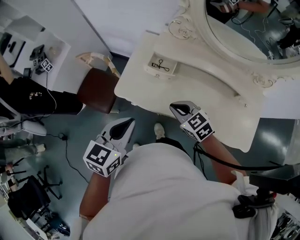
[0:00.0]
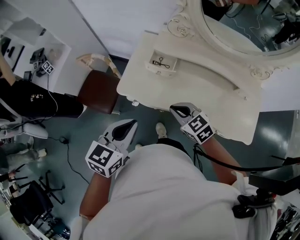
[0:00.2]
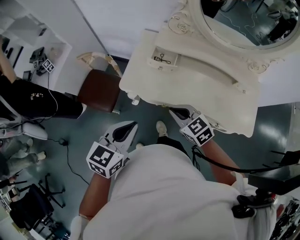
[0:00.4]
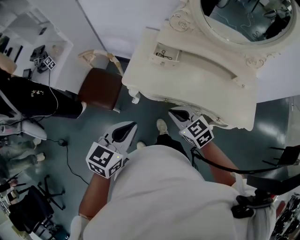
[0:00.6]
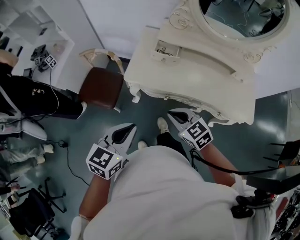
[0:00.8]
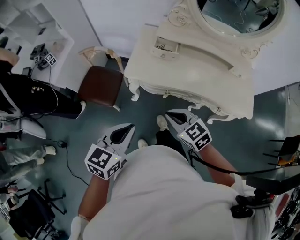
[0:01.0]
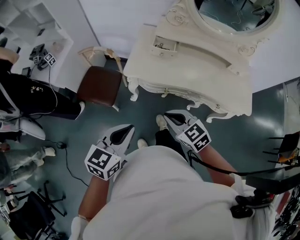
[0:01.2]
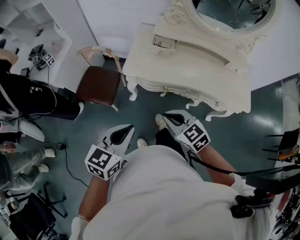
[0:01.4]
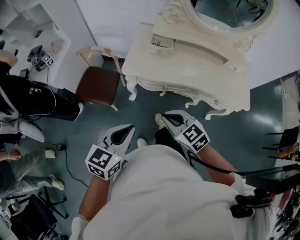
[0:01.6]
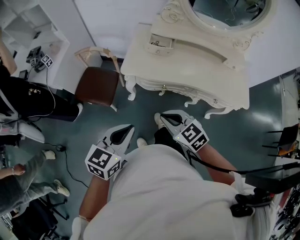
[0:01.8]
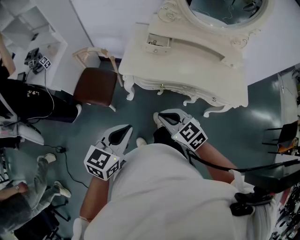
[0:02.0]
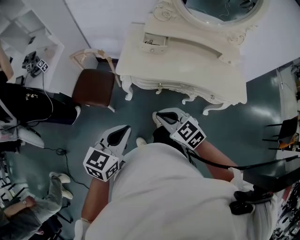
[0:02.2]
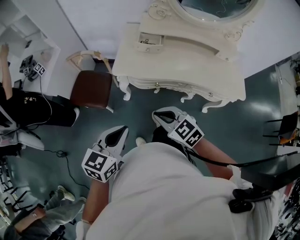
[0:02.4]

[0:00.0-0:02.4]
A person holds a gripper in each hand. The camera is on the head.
0:00.0 to 0:01.2: Both grippers travel together backward and to the left, about 25 cm.
0:01.2 to 0:02.4: There are only small adjustments of the grippers.

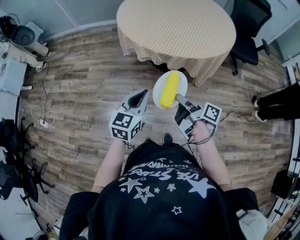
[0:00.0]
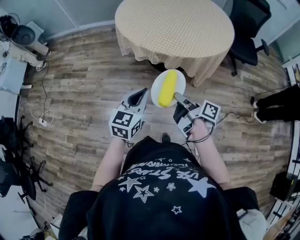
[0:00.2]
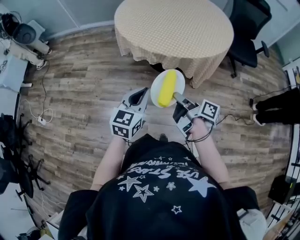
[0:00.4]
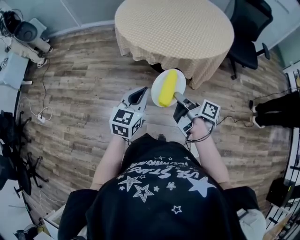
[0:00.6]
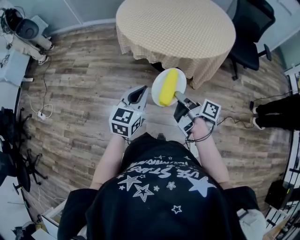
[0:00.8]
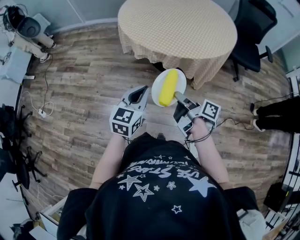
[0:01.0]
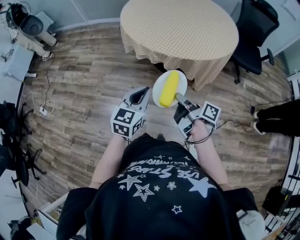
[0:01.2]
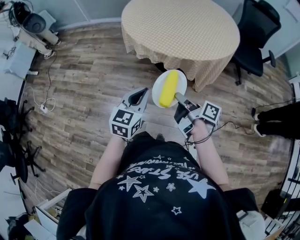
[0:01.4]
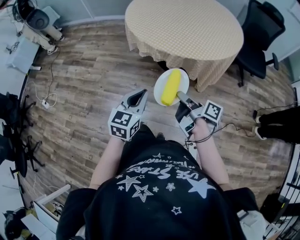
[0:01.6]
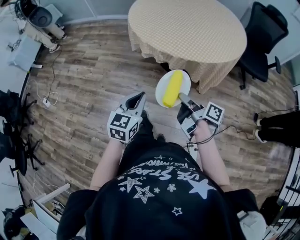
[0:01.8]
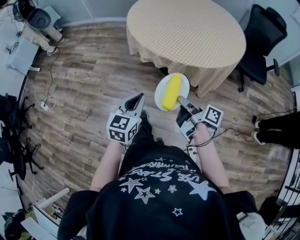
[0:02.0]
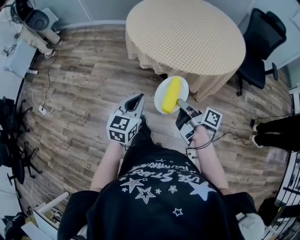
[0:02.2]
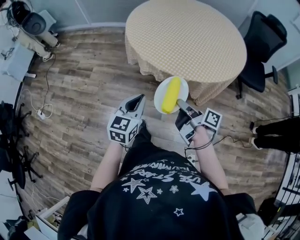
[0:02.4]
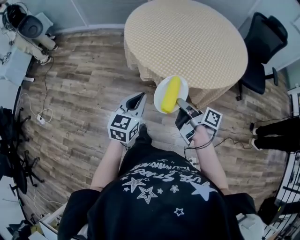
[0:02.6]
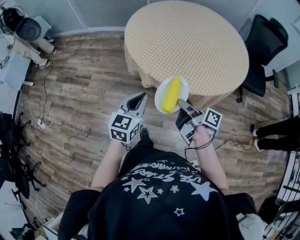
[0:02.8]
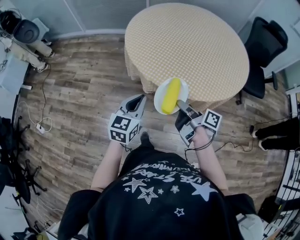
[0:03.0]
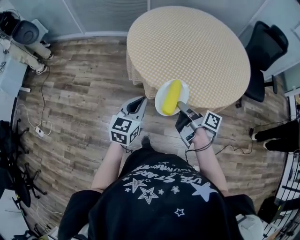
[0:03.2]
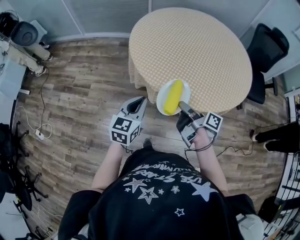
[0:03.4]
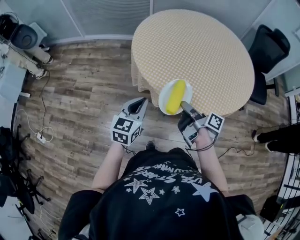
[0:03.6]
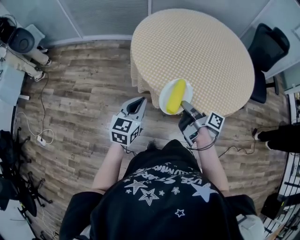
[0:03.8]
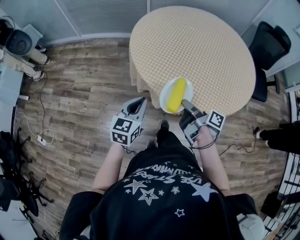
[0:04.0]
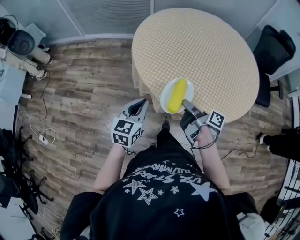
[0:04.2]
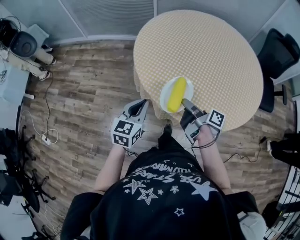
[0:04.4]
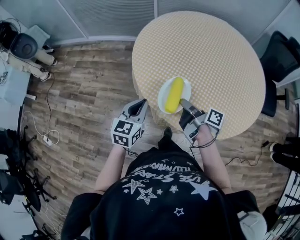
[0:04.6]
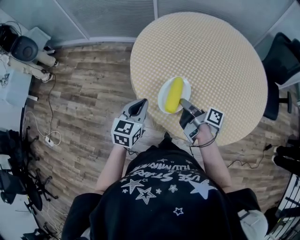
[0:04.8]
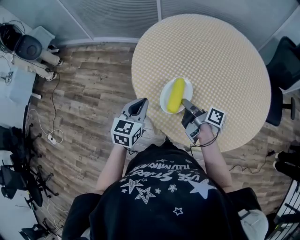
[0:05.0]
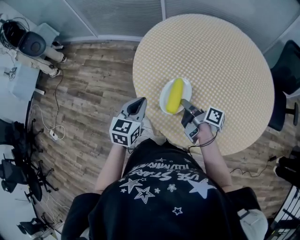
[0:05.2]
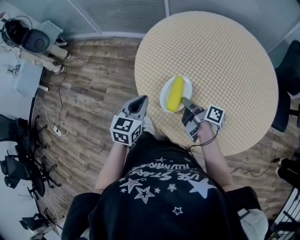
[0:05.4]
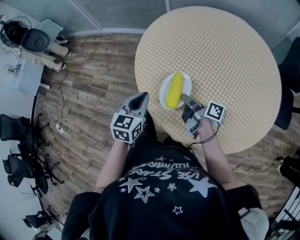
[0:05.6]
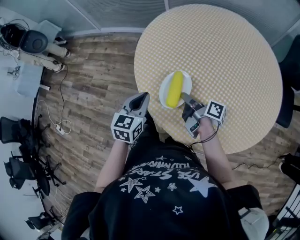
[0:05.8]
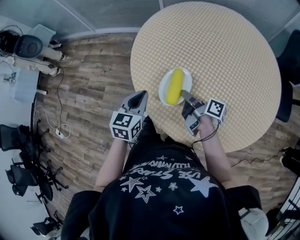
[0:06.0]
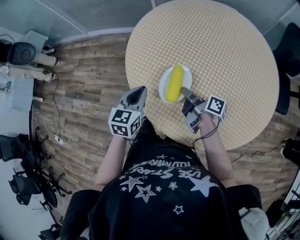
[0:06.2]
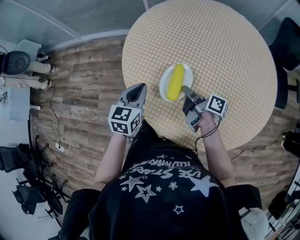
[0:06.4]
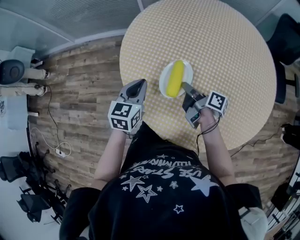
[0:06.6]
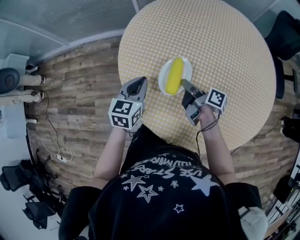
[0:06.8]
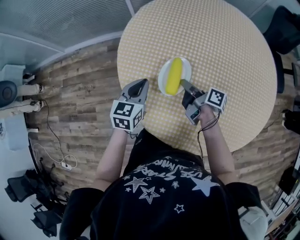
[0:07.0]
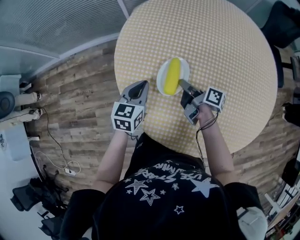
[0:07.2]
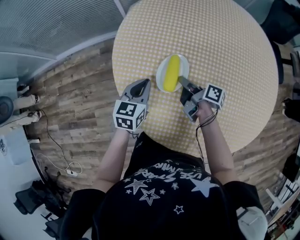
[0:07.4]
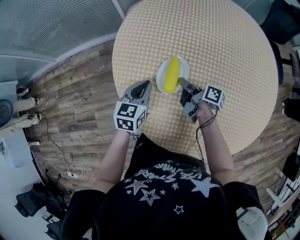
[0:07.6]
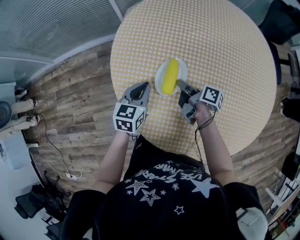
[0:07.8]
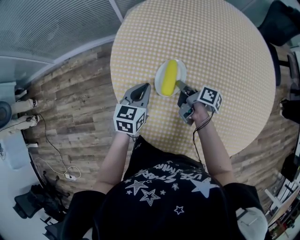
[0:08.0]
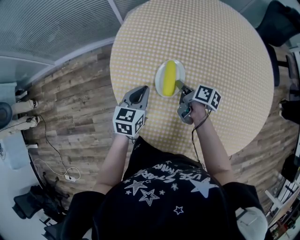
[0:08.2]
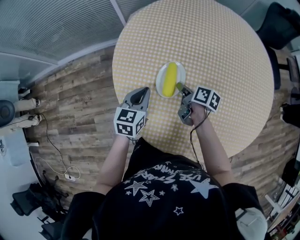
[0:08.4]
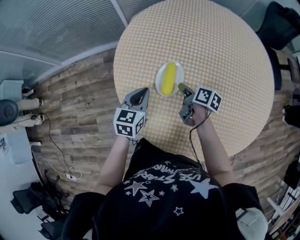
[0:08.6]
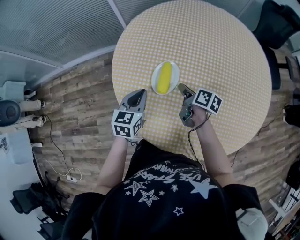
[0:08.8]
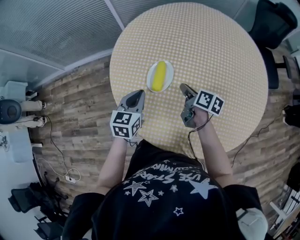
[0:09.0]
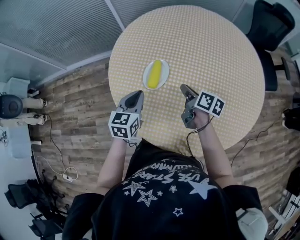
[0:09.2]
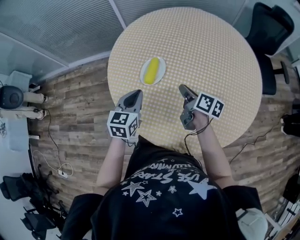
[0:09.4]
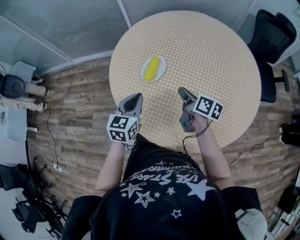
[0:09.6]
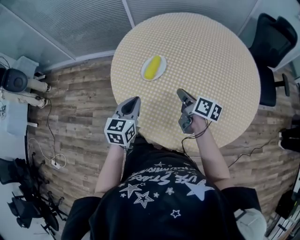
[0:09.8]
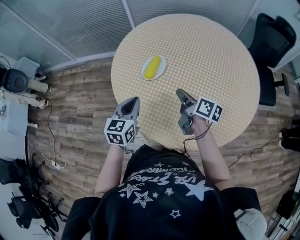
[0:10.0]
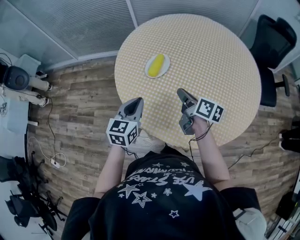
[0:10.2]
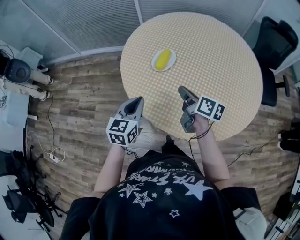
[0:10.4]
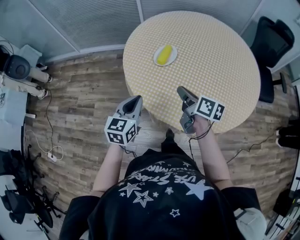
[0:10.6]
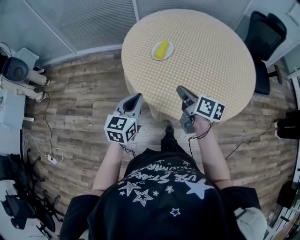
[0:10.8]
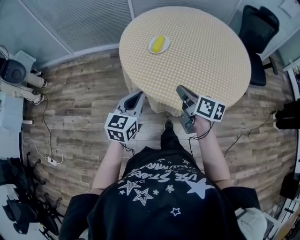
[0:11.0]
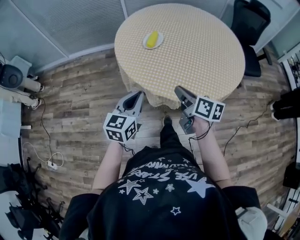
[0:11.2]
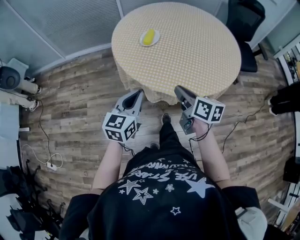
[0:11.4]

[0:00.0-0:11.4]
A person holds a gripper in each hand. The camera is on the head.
0:00.0 to 0:01.4: The left gripper ends up approximately 5 cm from where it was.
0:01.4 to 0:02.8: The left gripper changes place by some 20 cm.
0:02.8 to 0:04.2: The left gripper changes place by approximately 15 cm.
0:04.2 to 0:05.6: The left gripper ends up some 20 cm from where it was.
0:05.6 to 0:07.2: The left gripper moves some 25 cm, and rotates roughly 20 degrees.
0:08.6 to 0:10.0: The left gripper shifts by about 20 cm.
0:10.0 to 0:11.4: The left gripper shifts by about 25 cm.

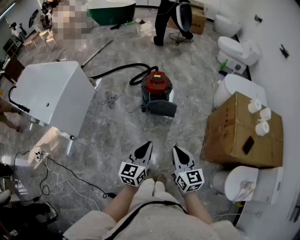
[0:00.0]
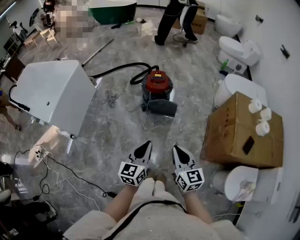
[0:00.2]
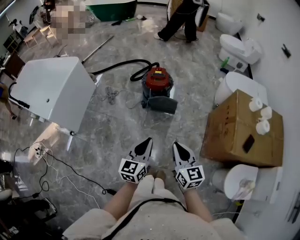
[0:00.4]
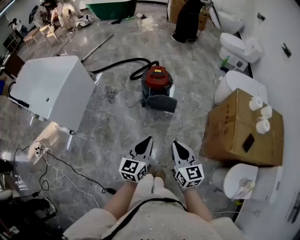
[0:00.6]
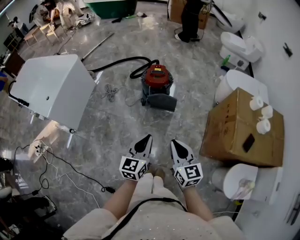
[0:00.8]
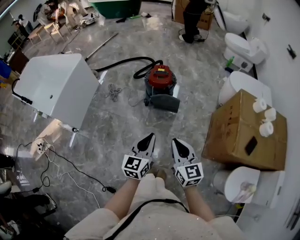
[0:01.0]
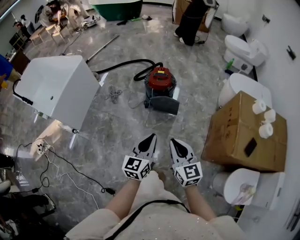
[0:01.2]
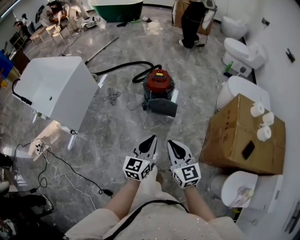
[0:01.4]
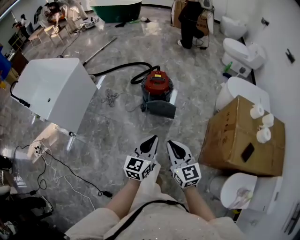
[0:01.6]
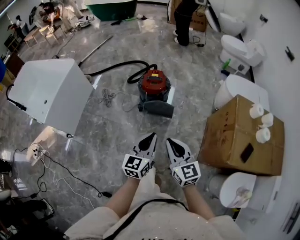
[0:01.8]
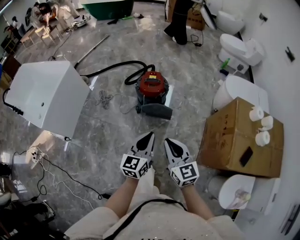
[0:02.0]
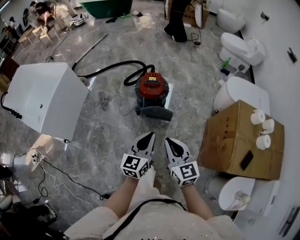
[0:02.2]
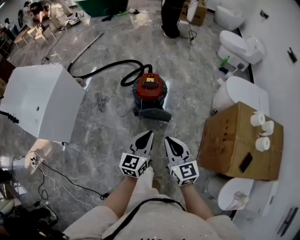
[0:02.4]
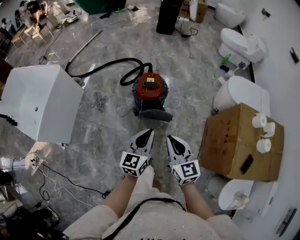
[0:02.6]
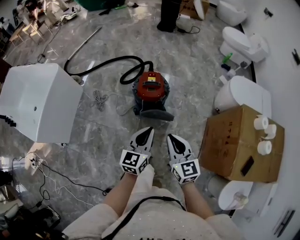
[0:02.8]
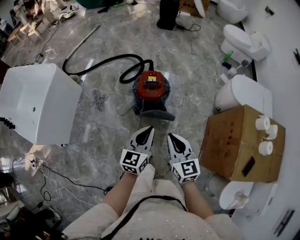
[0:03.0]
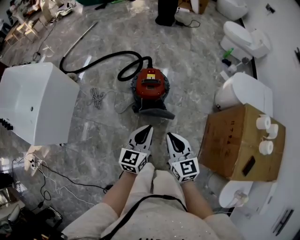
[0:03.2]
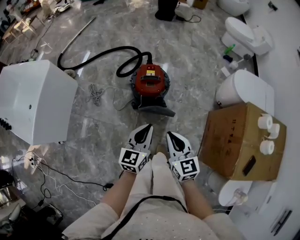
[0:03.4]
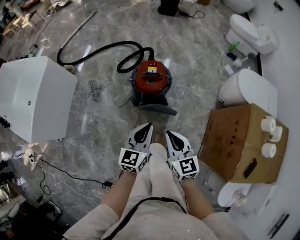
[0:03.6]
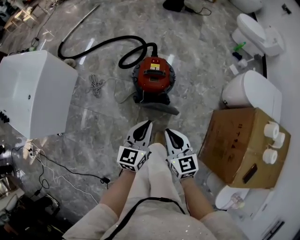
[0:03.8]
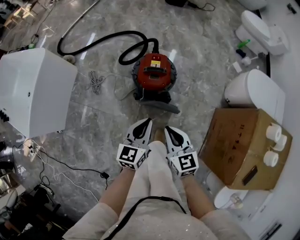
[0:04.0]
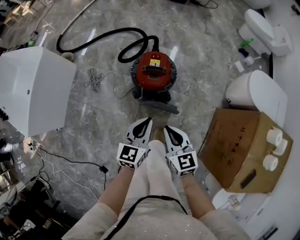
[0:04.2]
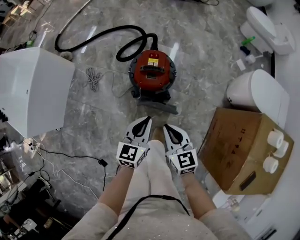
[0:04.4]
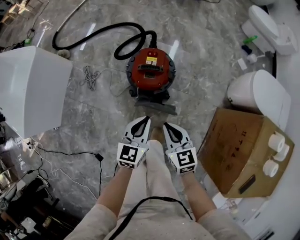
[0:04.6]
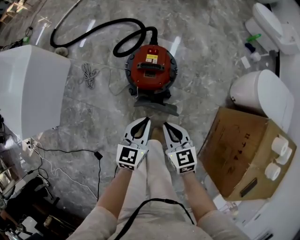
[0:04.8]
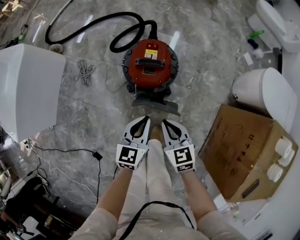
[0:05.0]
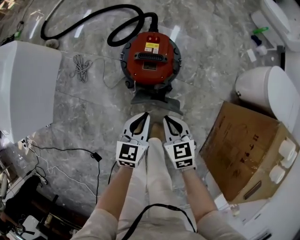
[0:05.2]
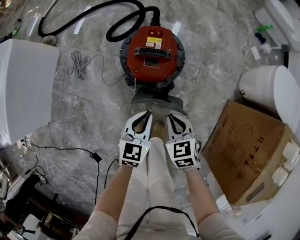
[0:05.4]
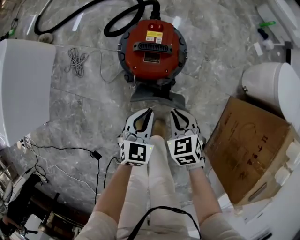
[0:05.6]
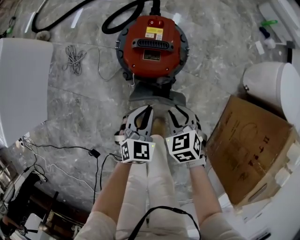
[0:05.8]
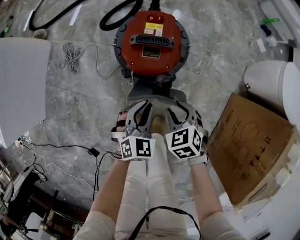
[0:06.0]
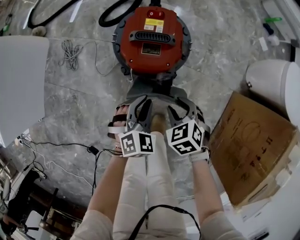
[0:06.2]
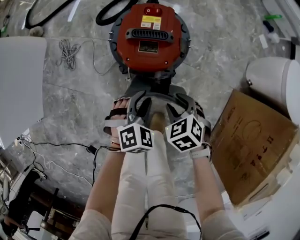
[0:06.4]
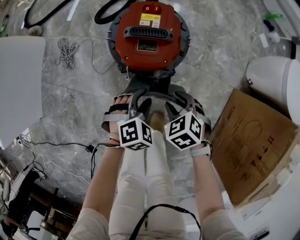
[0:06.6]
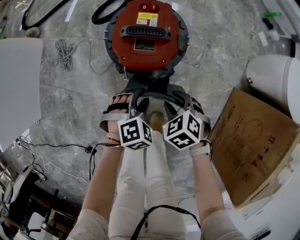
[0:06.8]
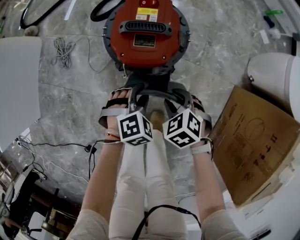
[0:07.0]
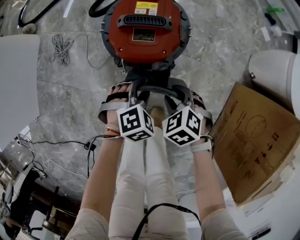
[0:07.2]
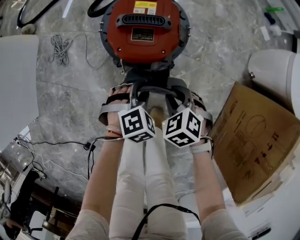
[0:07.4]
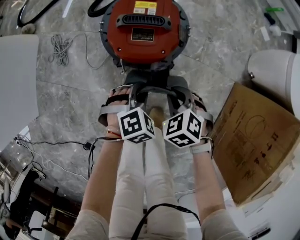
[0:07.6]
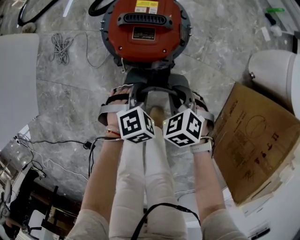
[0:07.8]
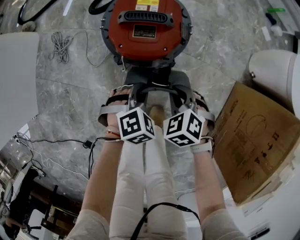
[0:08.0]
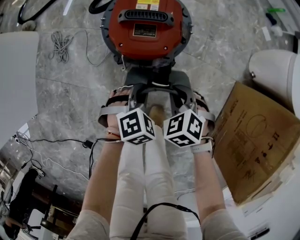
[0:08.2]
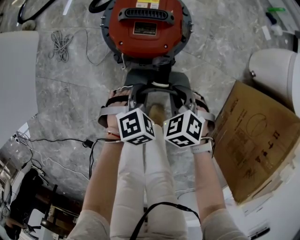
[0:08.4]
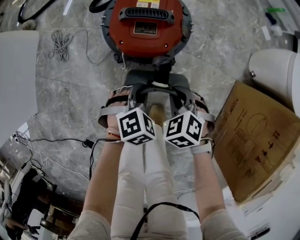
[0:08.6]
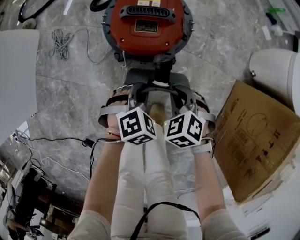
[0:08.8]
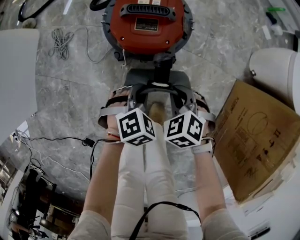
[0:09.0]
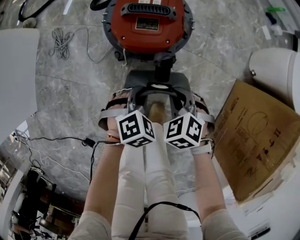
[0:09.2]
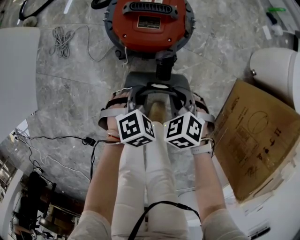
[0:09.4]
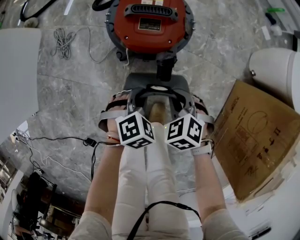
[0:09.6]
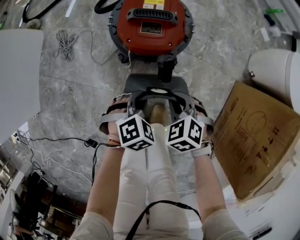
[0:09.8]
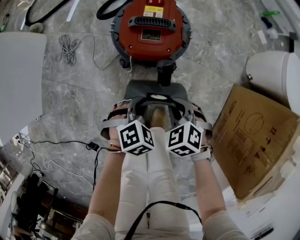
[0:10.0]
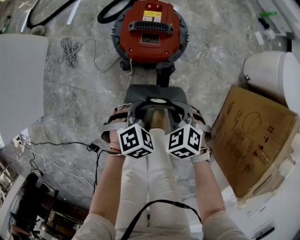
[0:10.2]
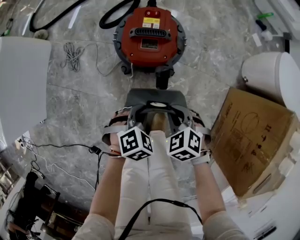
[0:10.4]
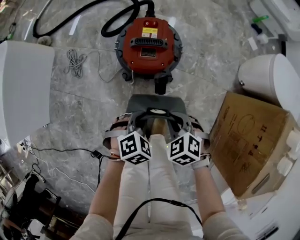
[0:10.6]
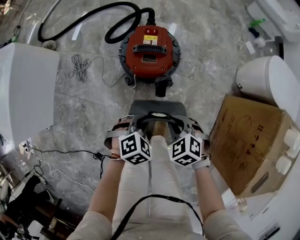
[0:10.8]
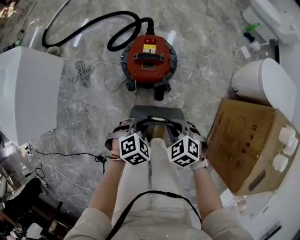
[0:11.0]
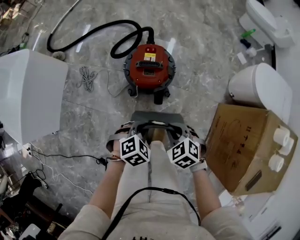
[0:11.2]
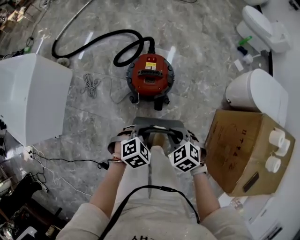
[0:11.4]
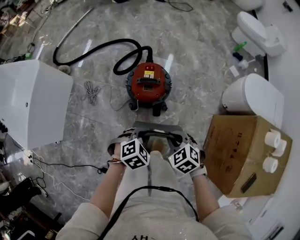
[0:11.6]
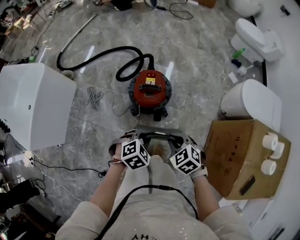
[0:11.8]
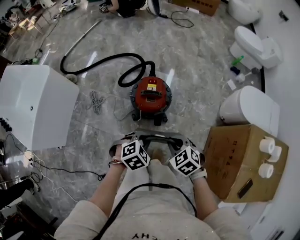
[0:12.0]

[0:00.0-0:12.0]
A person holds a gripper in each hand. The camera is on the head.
0:00.0 to 0:01.6: The left gripper heads to the right, covering about 5 cm.
0:01.6 to 0:03.0: The two grippers go some 25 cm forward.
0:03.0 to 0:04.4: Both grippers travel together downward and forward, about 15 cm.
0:04.4 to 0:06.0: The two grippers go approximately 25 cm downward. The left gripper swivels roughly 40 degrees; the right gripper angles its fingers downward, by roughly 40 degrees, and opens.
0:06.0 to 0:07.6: The right gripper travels downward by roughly 5 cm, while the left gripper heads downward, covering some 10 cm, and changes its angle by approximately 30 degrees.
0:07.6 to 0:09.0: There are only small adjustments of the grippers.
0:09.0 to 0:10.4: The two grippers go roughly 10 cm upward.
0:10.4 to 0:12.0: Both grippers move upward, about 25 cm.
